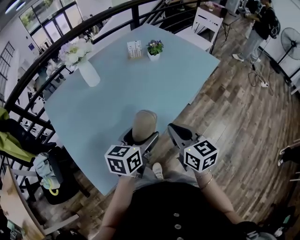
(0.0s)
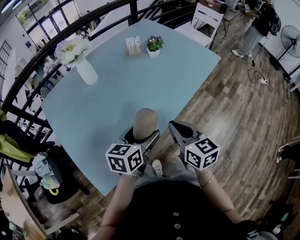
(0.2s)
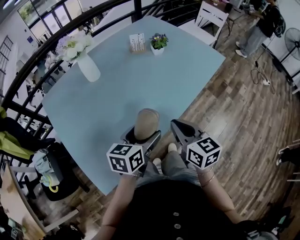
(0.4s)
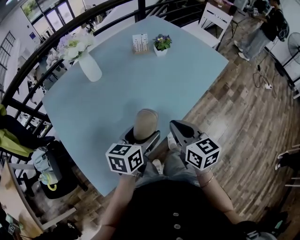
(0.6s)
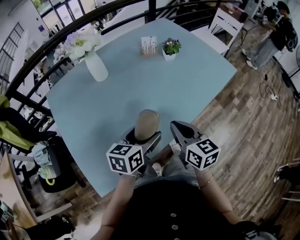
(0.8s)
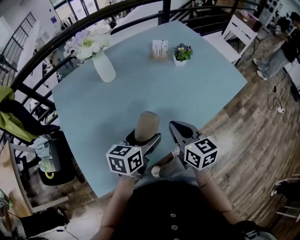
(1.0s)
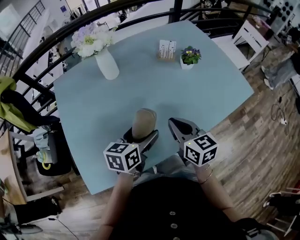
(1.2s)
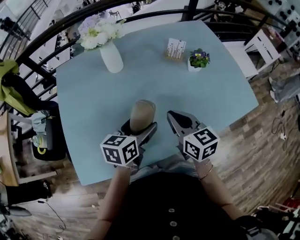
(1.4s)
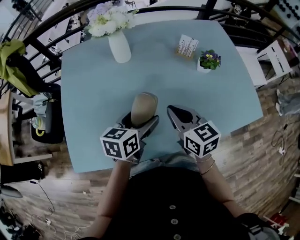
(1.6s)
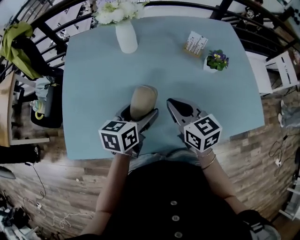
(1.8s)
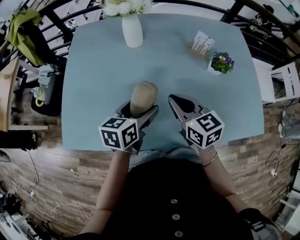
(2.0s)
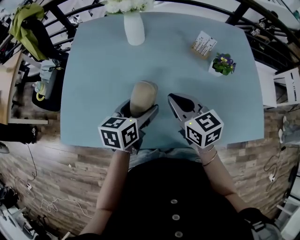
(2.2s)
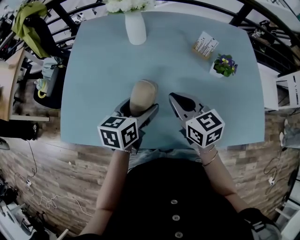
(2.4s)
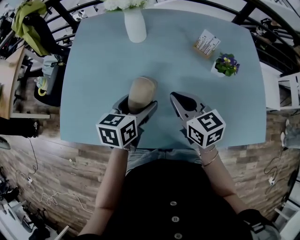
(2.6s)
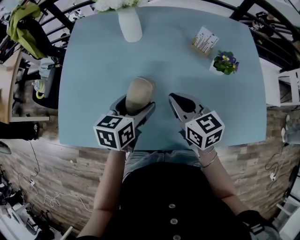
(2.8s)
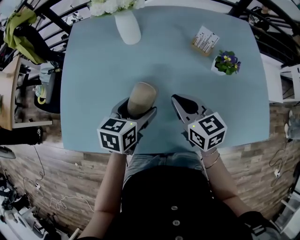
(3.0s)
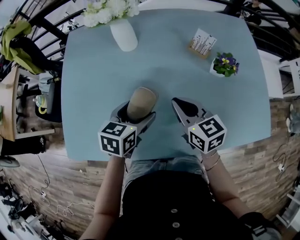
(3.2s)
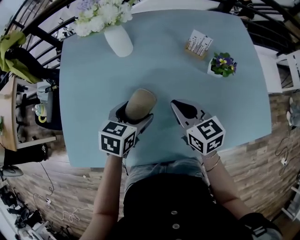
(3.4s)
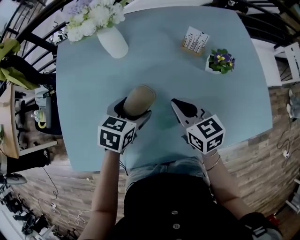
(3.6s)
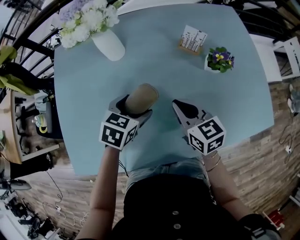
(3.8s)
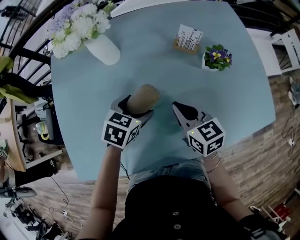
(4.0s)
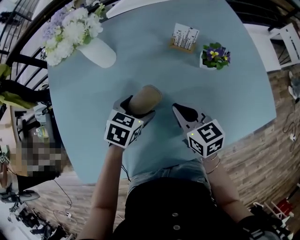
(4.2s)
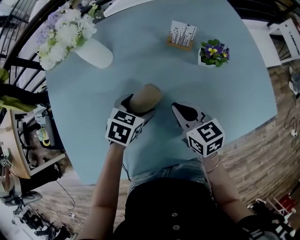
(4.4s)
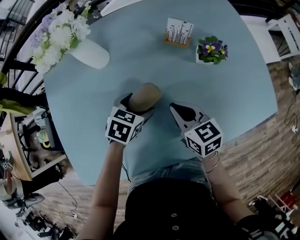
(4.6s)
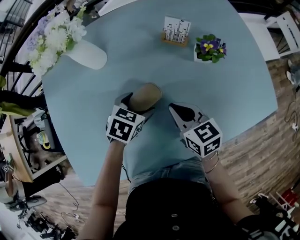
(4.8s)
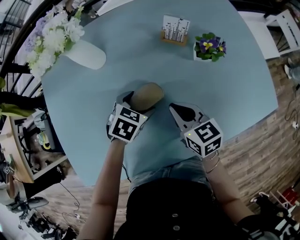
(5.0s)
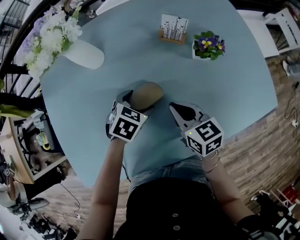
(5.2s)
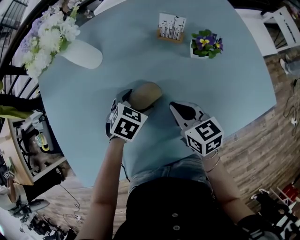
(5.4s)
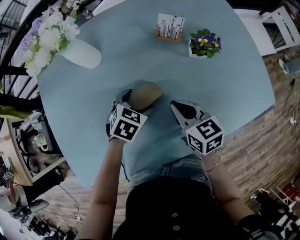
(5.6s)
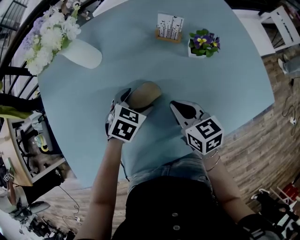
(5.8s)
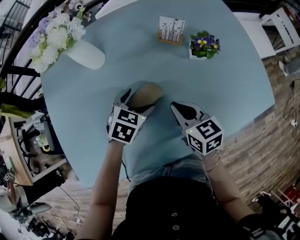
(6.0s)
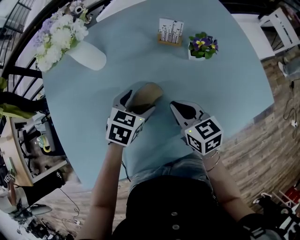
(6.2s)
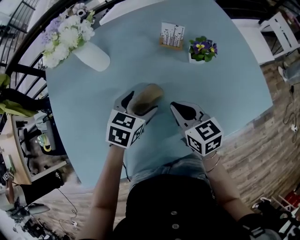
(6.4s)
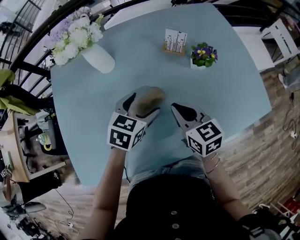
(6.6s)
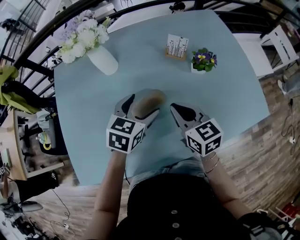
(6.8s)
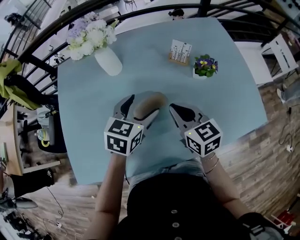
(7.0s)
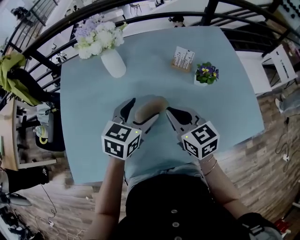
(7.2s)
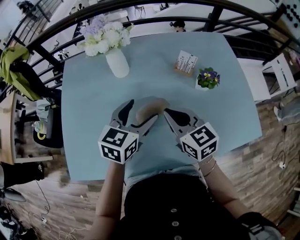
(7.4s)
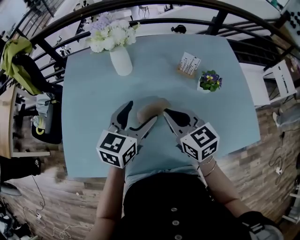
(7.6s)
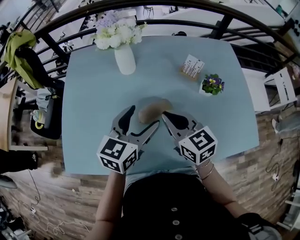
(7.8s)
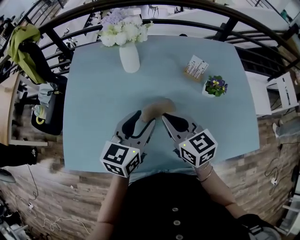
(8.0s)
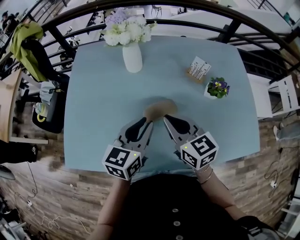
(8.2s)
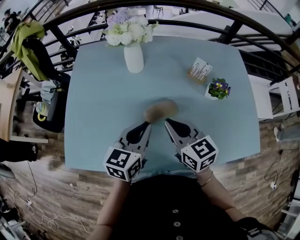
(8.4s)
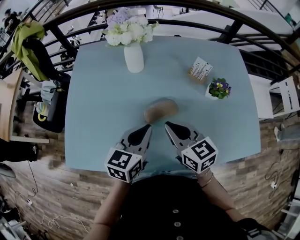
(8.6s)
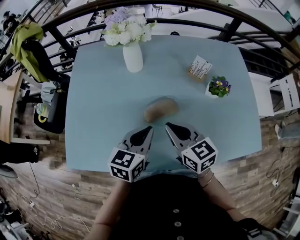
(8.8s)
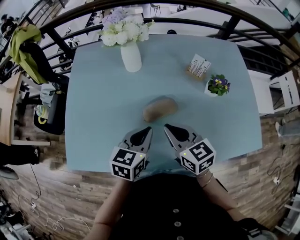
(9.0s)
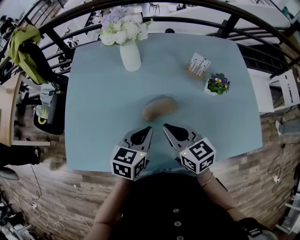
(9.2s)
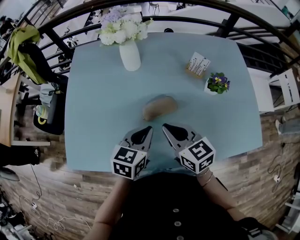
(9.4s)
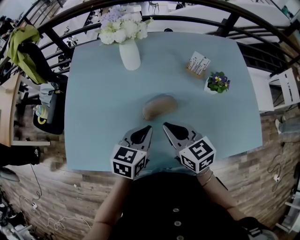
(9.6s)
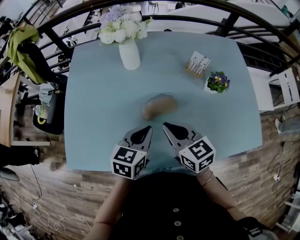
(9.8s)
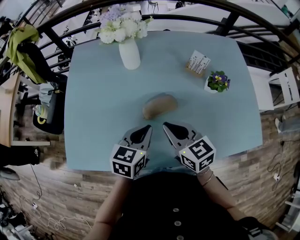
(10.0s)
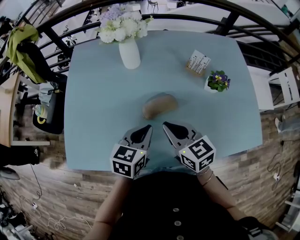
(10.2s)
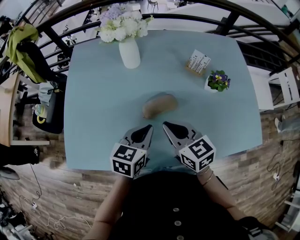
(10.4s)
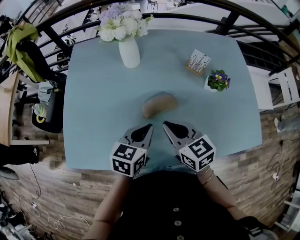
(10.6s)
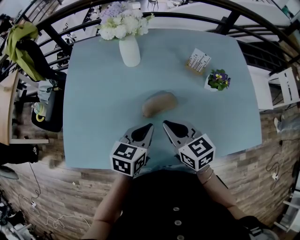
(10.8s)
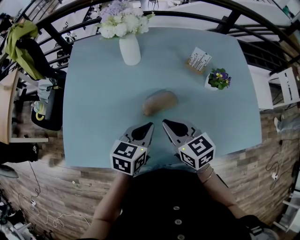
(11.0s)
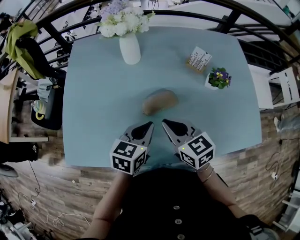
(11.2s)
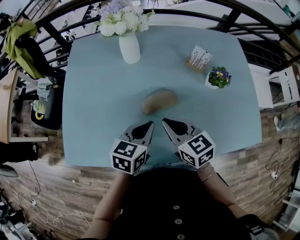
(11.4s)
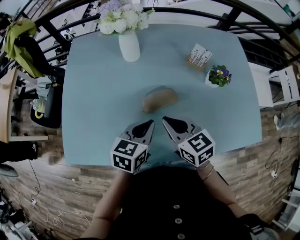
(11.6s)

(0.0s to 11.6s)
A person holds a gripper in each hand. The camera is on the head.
0.0s - 1.4s: The right gripper changes place by some 20 cm, and swivels about 30 degrees. Meanwhile the left gripper shifts by roughly 15 cm, and changes its angle by some 30 degrees.
1.4s - 2.8s: The left gripper changes its angle by roughly 20 degrees; the right gripper heads forward, covering approximately 5 cm, and changes its angle by approximately 20 degrees.
2.8s - 4.4s: The right gripper moves downward, about 5 cm; the left gripper travels forward and downward by roughly 10 cm, and rotates about 40 degrees.
4.4s - 5.8s: There are only small adjustments of the grippers.
5.8s - 7.2s: The right gripper goes about 10 cm upward. The left gripper travels upward by about 15 cm, and changes its angle by some 30 degrees.
7.2s - 8.8s: The right gripper heads to the left, covering some 5 cm. Meanwhile the left gripper travels backward by some 5 cm, and closes its fingers.
8.8s - 11.6s: There are only small adjustments of the grippers.

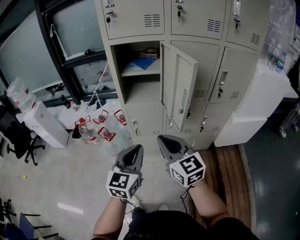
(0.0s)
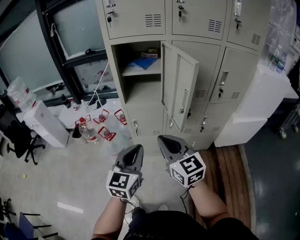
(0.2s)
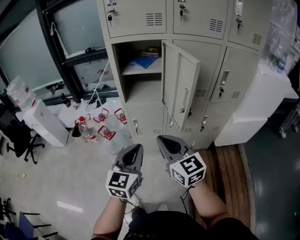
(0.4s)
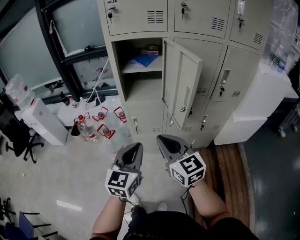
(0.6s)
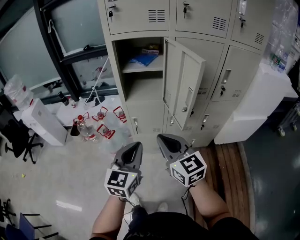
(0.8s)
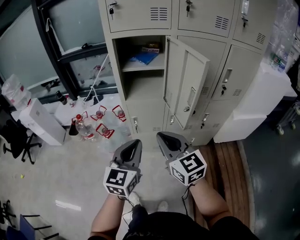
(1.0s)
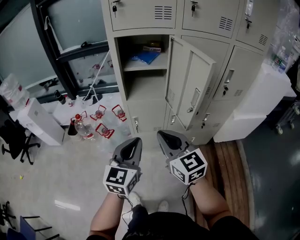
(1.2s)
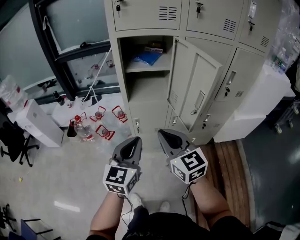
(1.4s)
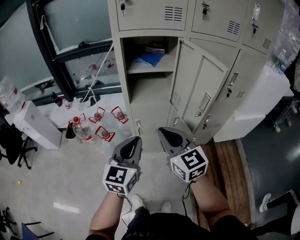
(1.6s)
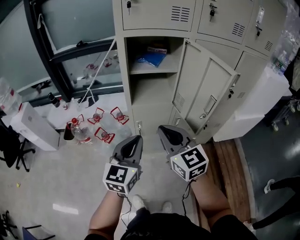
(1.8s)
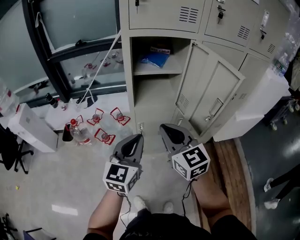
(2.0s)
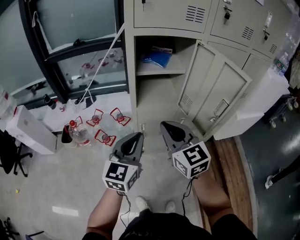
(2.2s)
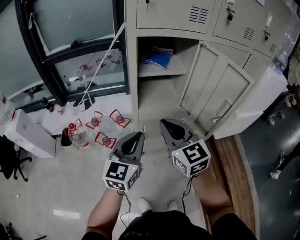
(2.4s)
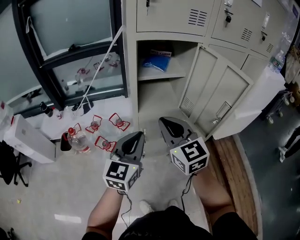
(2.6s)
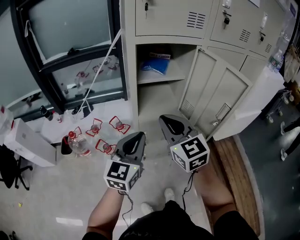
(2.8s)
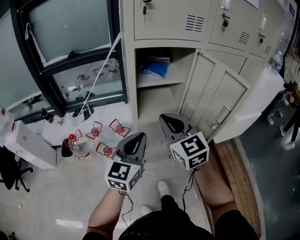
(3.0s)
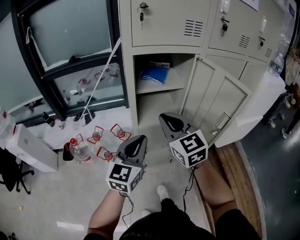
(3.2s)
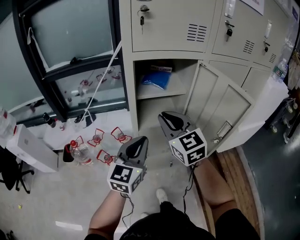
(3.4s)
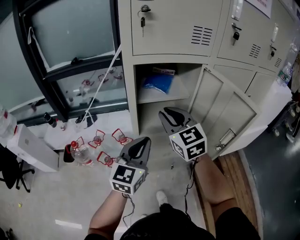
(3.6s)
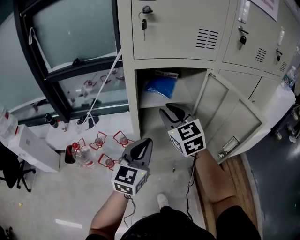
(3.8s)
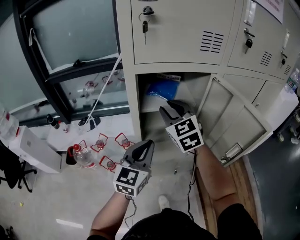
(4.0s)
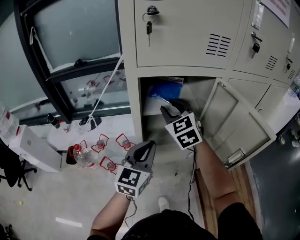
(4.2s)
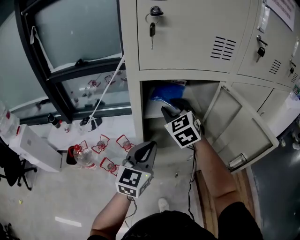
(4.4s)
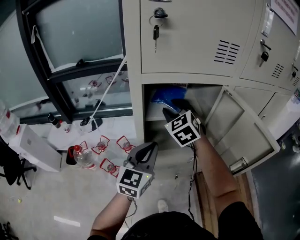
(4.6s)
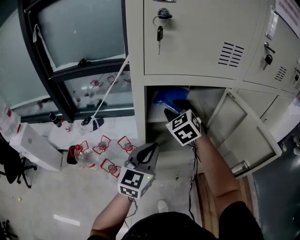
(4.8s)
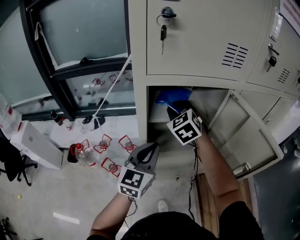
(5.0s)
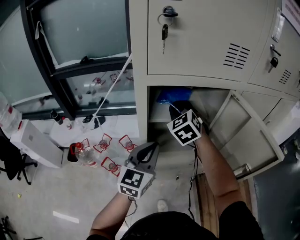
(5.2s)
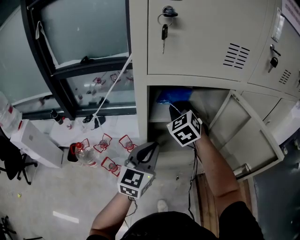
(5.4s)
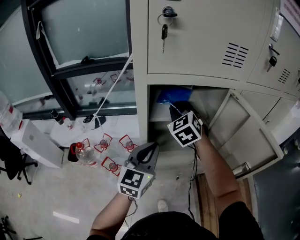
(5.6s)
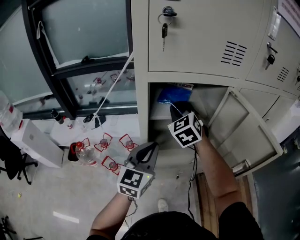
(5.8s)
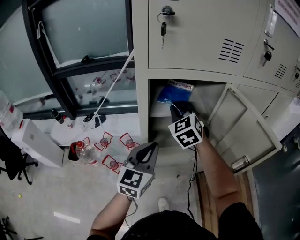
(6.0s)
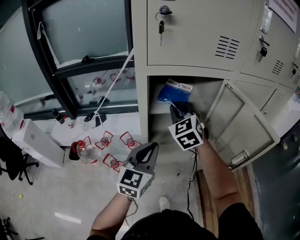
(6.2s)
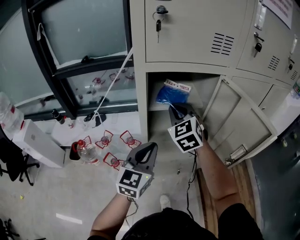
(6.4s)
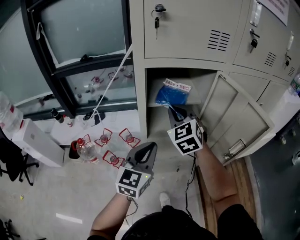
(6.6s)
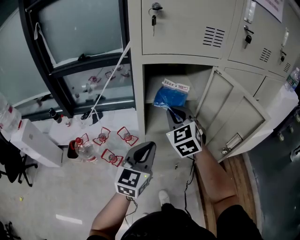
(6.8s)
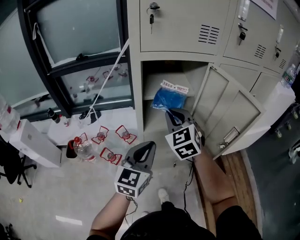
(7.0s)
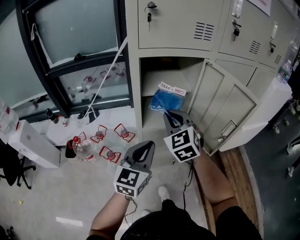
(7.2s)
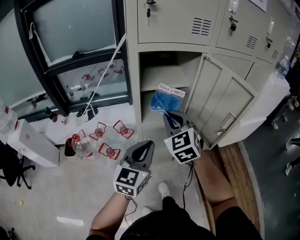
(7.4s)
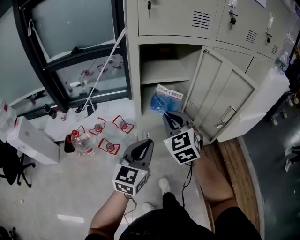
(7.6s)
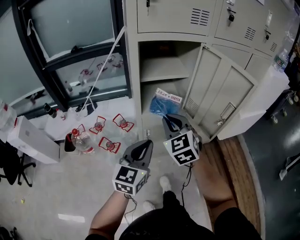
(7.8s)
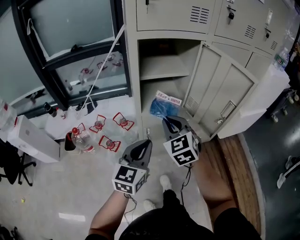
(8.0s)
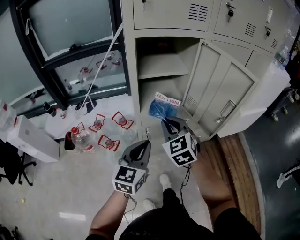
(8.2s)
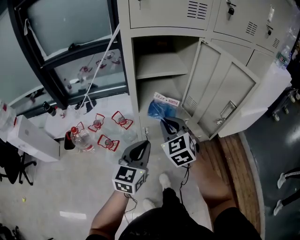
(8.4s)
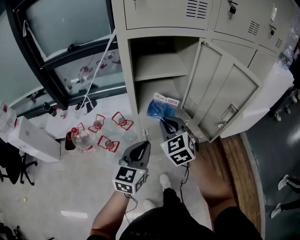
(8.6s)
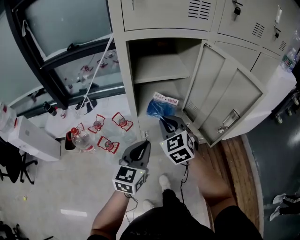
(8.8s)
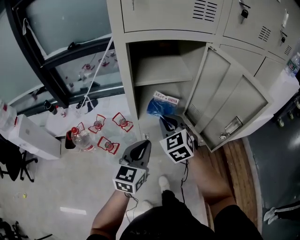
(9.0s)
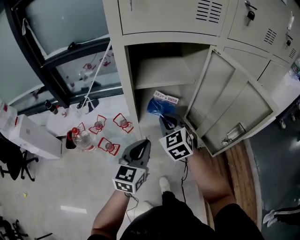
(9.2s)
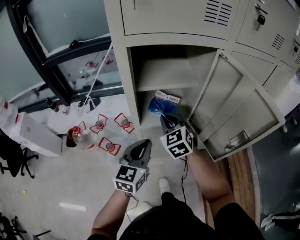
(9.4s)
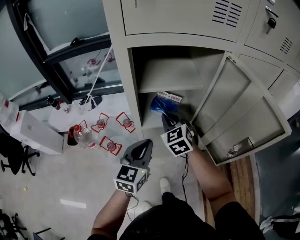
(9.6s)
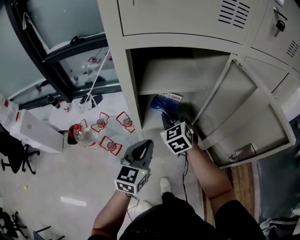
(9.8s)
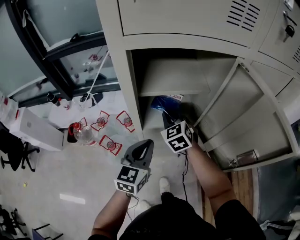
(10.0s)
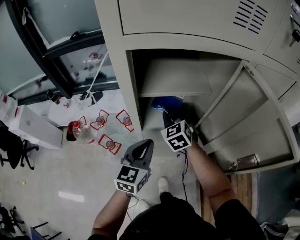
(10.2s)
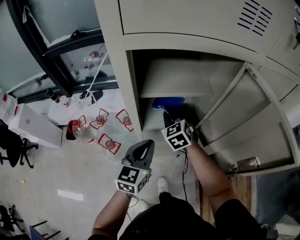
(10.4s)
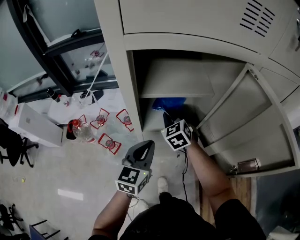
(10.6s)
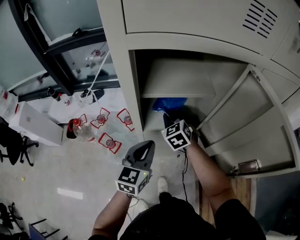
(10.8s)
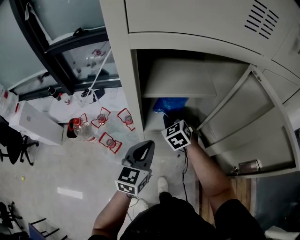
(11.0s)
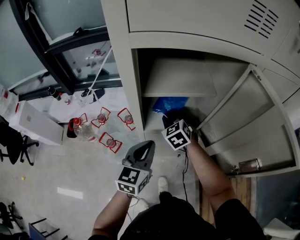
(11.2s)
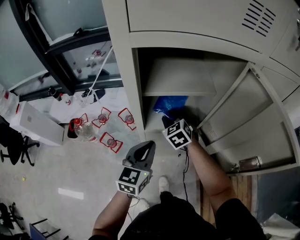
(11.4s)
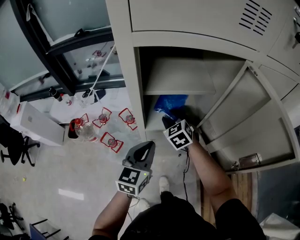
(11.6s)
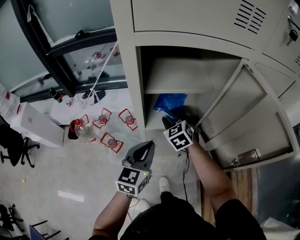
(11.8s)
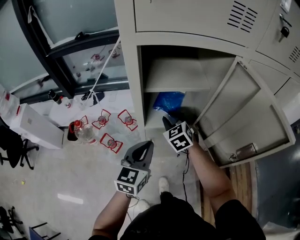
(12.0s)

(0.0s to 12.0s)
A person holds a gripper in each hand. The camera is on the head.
0.0s - 1.6s: The grippers both shift forward and to the left by approximately 10 cm.
1.6s - 3.0s: The two grippers go roughly 15 cm forward and to the left.
3.0s - 4.4s: The right gripper is displaced forward by about 25 cm, turns by roughly 20 degrees, and opens its fingers. Meanwhile the left gripper shifts approximately 15 cm forward.
4.4s - 6.0s: The right gripper closes.
6.0s - 7.6s: Both grippers move backward, roughly 20 cm.
7.6s - 9.0s: The right gripper goes about 10 cm downward and forward; the left gripper travels forward and downward by roughly 10 cm.
9.0s - 10.4s: The left gripper is displaced forward by some 10 cm, while the right gripper shifts some 15 cm forward and downward.
10.4s - 12.0s: There are only small adjustments of the grippers.
